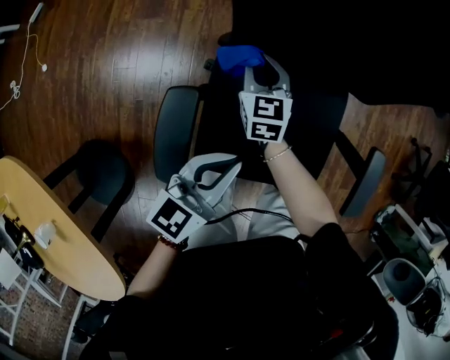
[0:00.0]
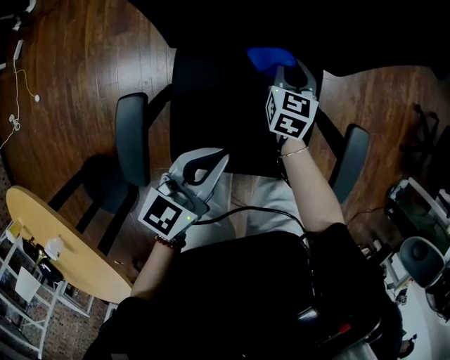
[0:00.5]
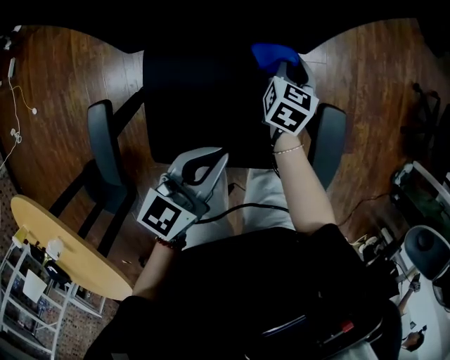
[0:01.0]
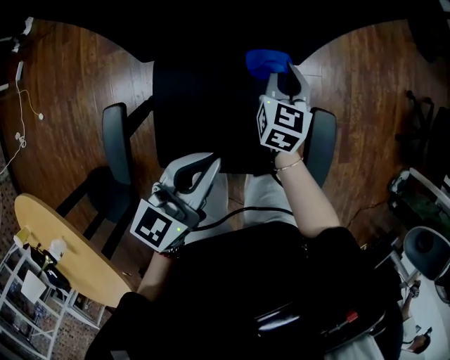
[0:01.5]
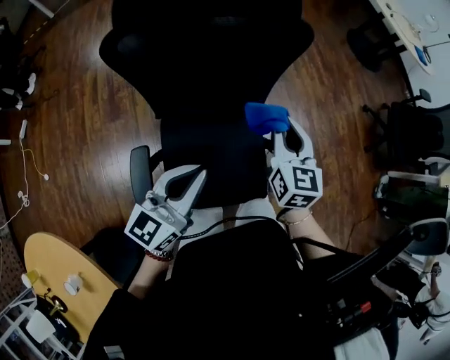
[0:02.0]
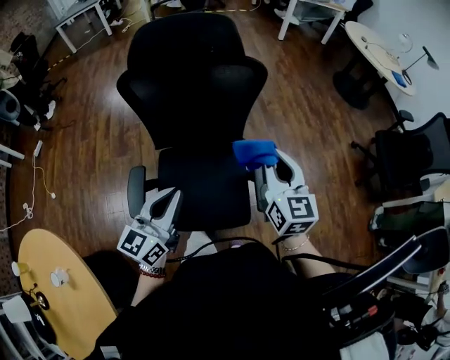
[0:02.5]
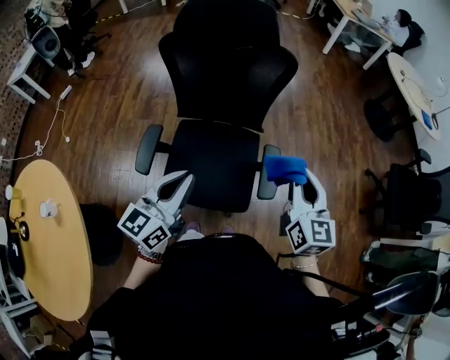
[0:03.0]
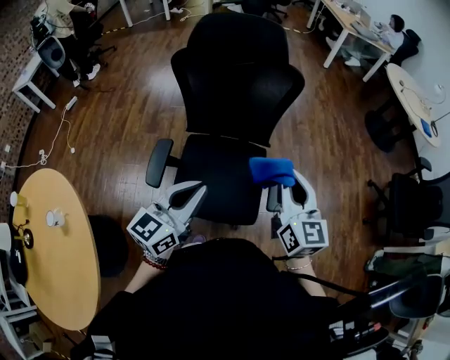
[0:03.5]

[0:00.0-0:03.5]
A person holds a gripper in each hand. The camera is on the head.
0:00.0 to 0:02.0: The left gripper moves upward and to the right, about 25 cm. The right gripper goes left and right, approximately 35 cm each way, reversing 2 times, and turns by roughly 30 degrees.
0:02.0 to 0:03.5: Both grippers move backward, upward and to the right, approximately 20 cm. The right gripper swivels roughly 30 degrees.

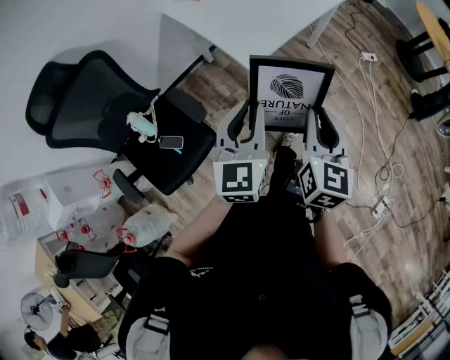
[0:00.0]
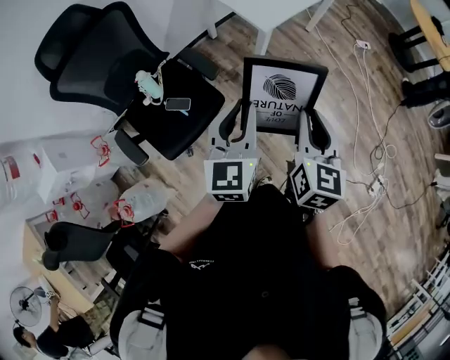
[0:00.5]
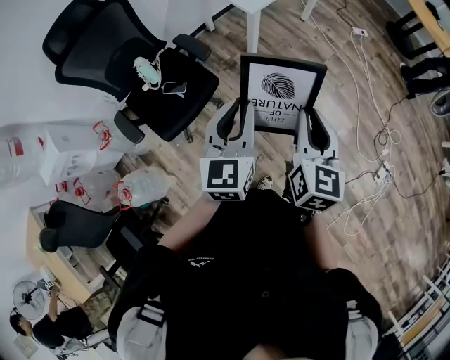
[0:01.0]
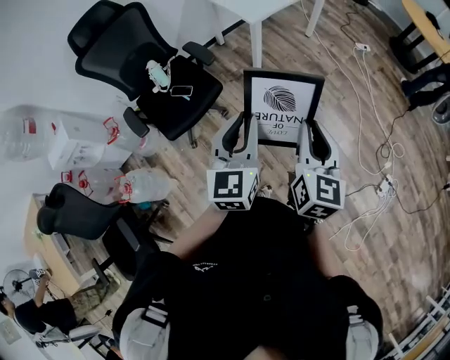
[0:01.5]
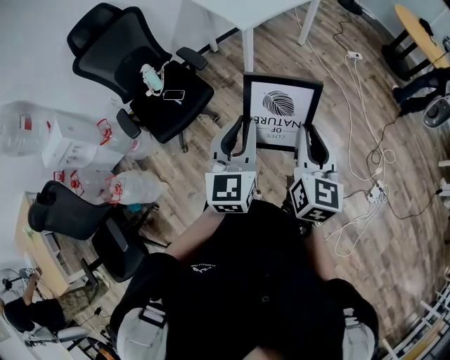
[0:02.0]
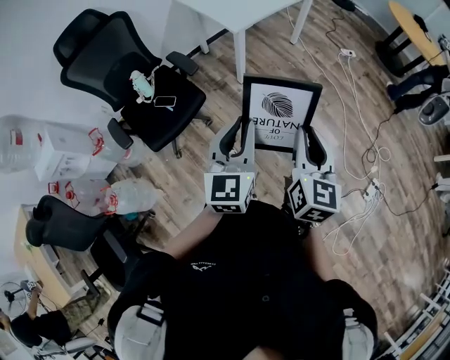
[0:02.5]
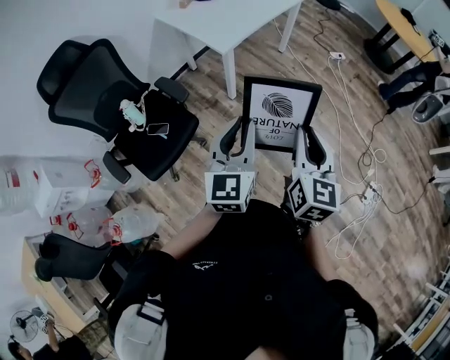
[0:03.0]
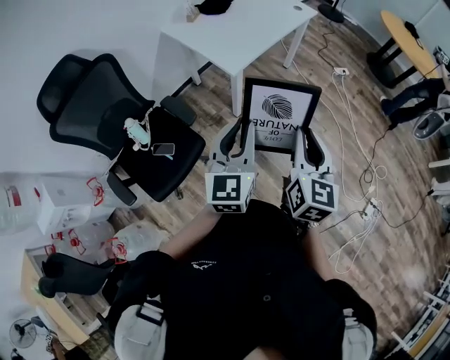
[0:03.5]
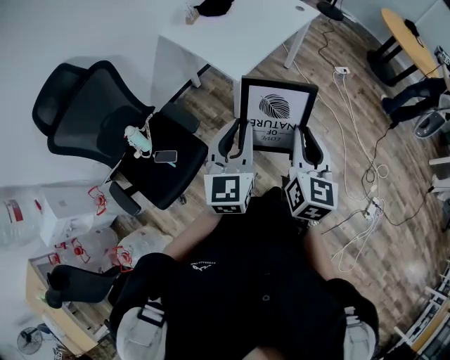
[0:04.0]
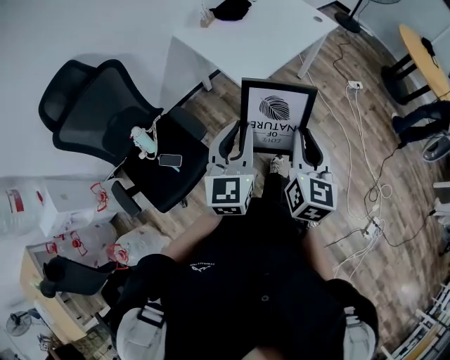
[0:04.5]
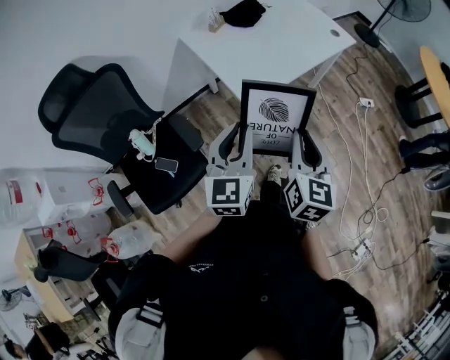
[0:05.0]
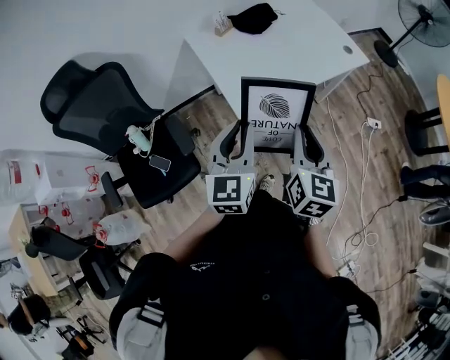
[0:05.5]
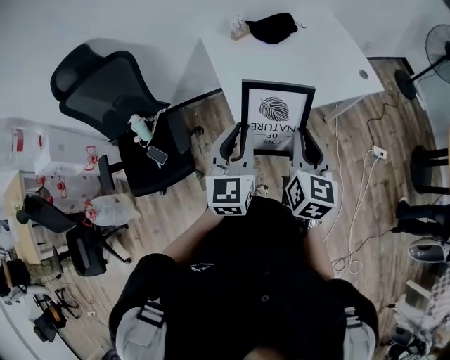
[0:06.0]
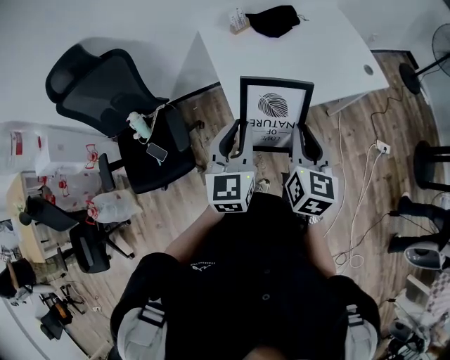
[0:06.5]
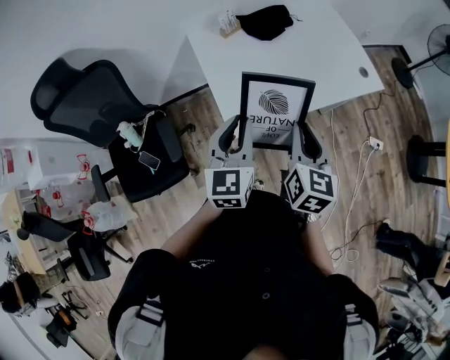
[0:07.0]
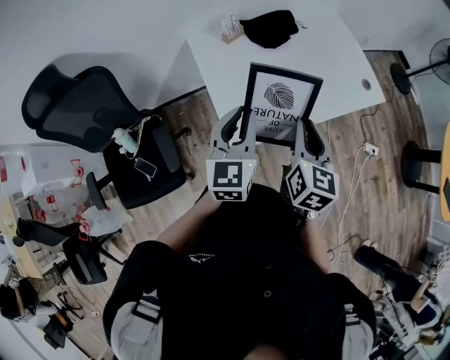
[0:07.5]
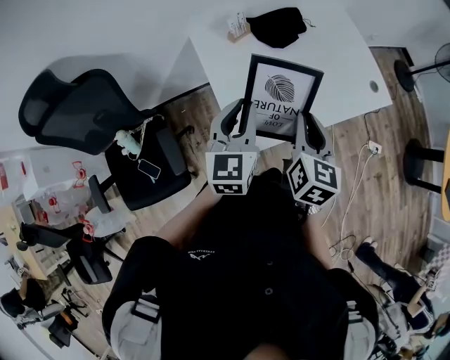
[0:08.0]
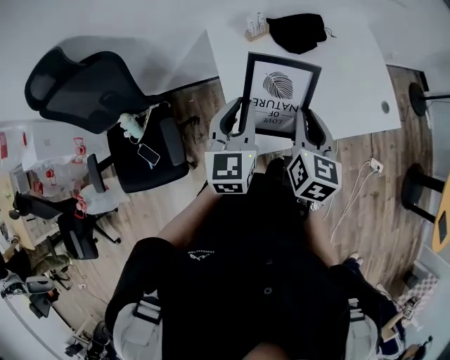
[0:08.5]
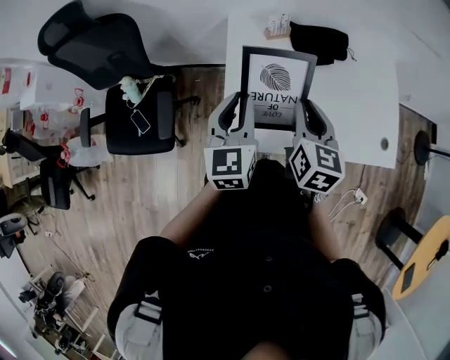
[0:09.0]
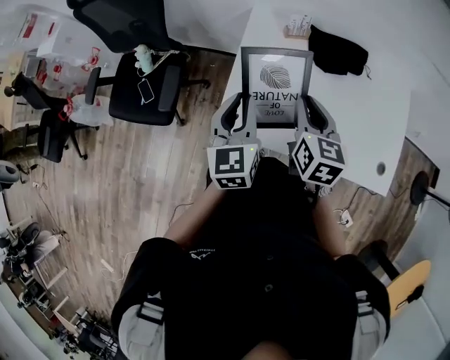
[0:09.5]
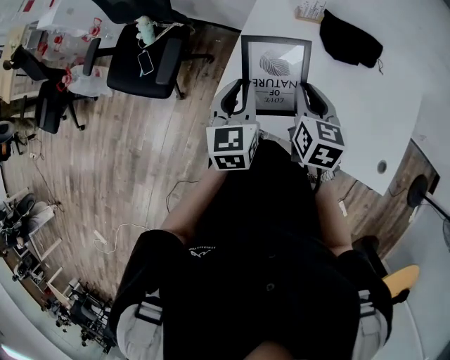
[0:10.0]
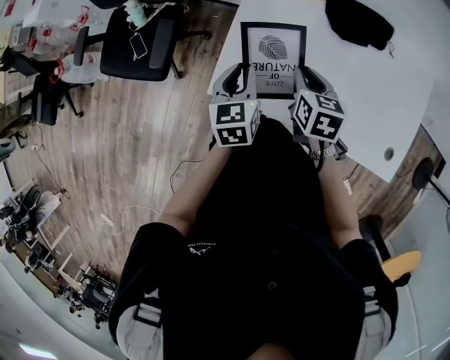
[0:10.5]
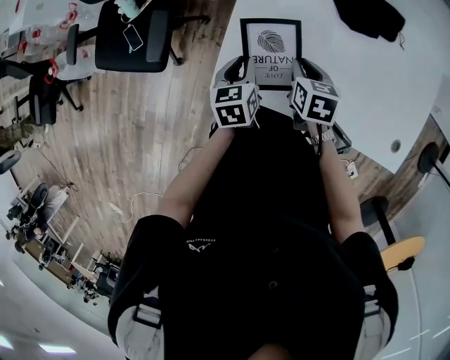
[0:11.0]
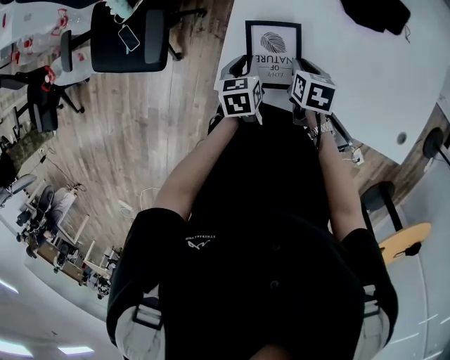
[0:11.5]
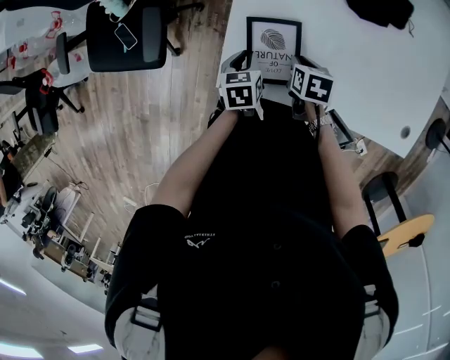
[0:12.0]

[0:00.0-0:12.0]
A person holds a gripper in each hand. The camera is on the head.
0:00.0 to 0:02.0: The two grippers travel together, backward, approximately 50 cm.
0:02.0 to 0:04.0: The two grippers go roughly 35 cm forward.
0:04.0 to 0:06.0: The right gripper moves some 35 cm, and changes its angle by some 30 degrees. The left gripper ends up some 30 cm from where it was, and rotates approximately 30 degrees.
0:06.0 to 0:08.0: The grippers both shift forward by about 25 cm.
0:08.0 to 0:10.0: The right gripper moves about 15 cm, and turns by approximately 50 degrees, while the left gripper heads downward, covering about 10 cm, and rotates about 50 degrees.
0:10.0 to 0:12.0: Both grippers move downward, approximately 25 cm. The left gripper angles its fingers downward, by about 30 degrees, while the right gripper tips its fingers downward by some 30 degrees.

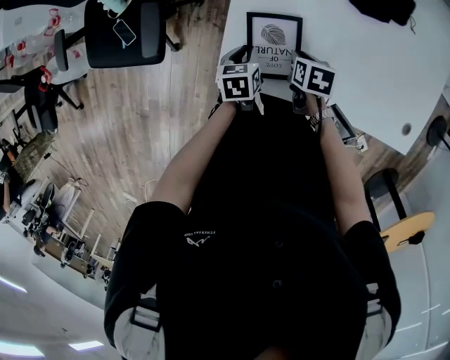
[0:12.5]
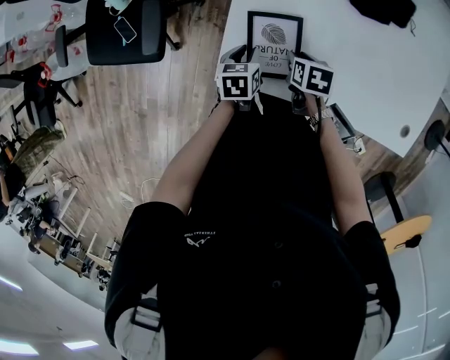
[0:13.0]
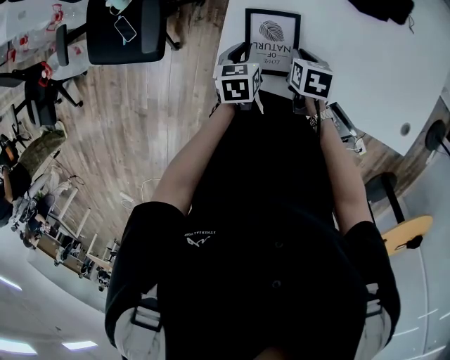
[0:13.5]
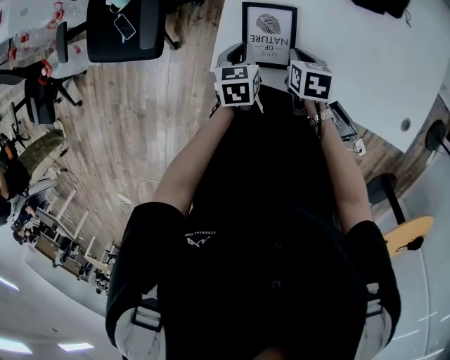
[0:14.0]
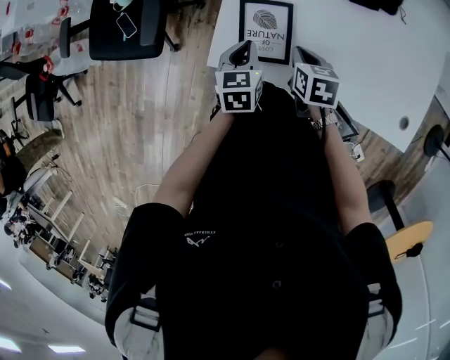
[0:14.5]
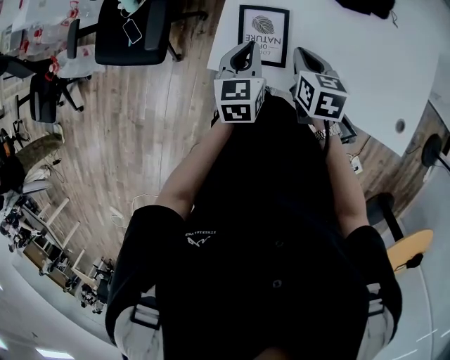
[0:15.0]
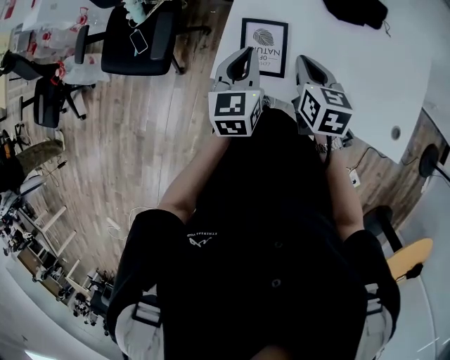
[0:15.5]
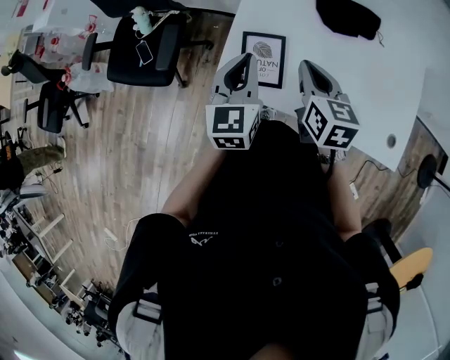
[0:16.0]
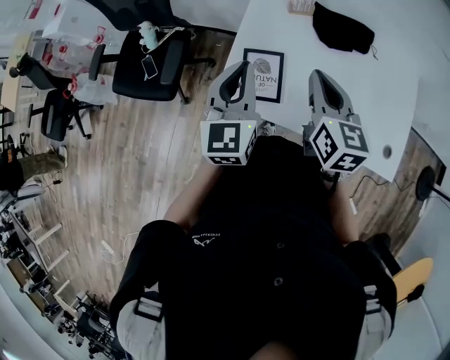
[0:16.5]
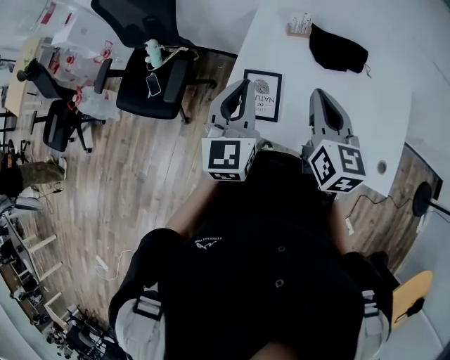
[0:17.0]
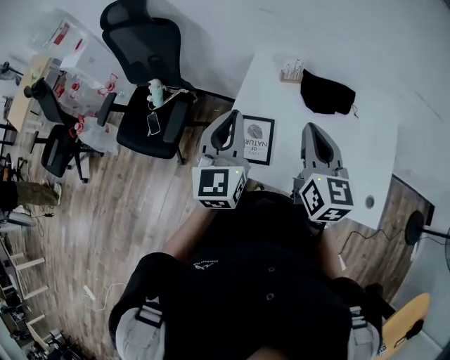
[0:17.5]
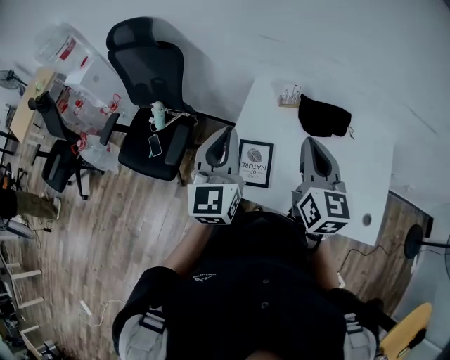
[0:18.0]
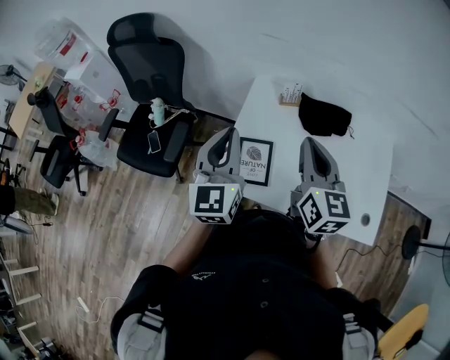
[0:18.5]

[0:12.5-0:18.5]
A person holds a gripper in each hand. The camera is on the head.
0:12.5 to 0:14.5: The grippers both shift upward by some 10 cm.
0:14.5 to 0:16.5: Both grippers move upward, about 25 cm. The right gripper tilts its fingers approximately 40 degrees upward. Meanwhile the left gripper tips its fingers upward by some 30 degrees.
0:16.5 to 0:18.5: Both grippers move upward, approximately 10 cm.

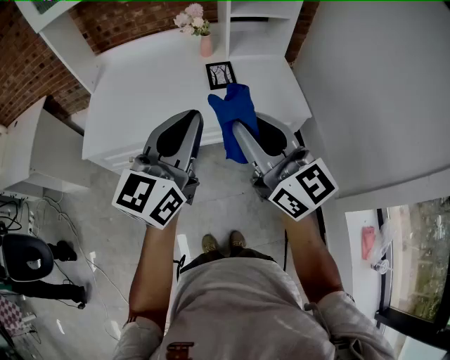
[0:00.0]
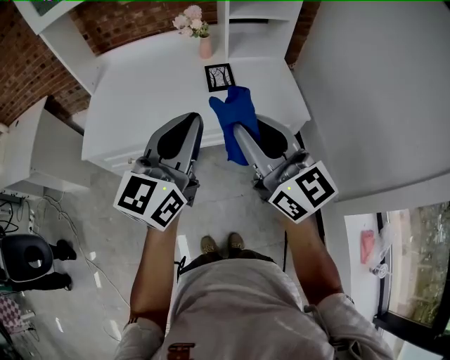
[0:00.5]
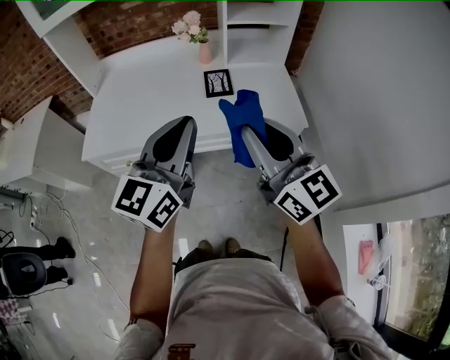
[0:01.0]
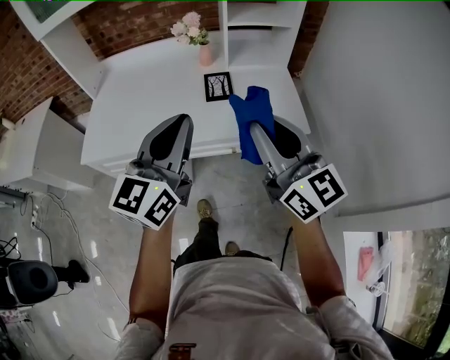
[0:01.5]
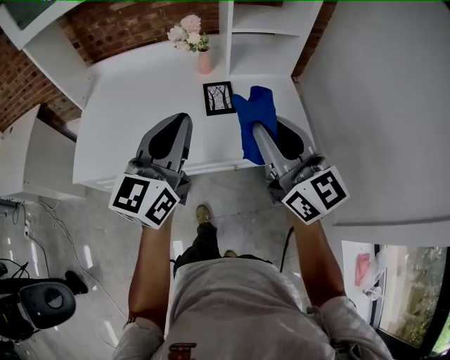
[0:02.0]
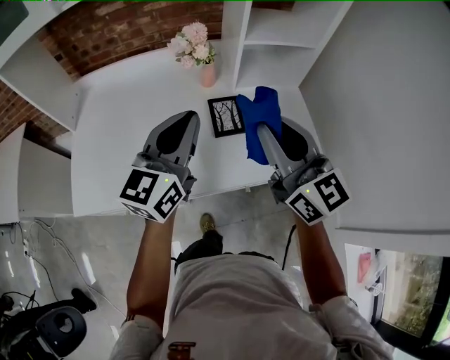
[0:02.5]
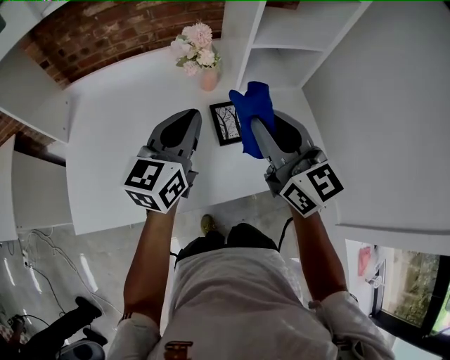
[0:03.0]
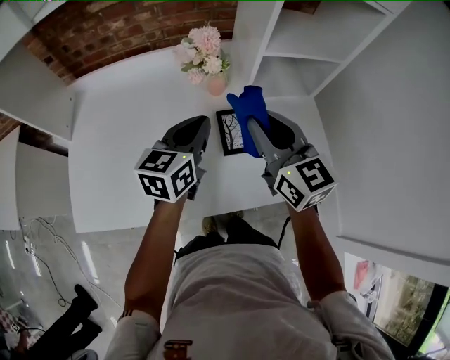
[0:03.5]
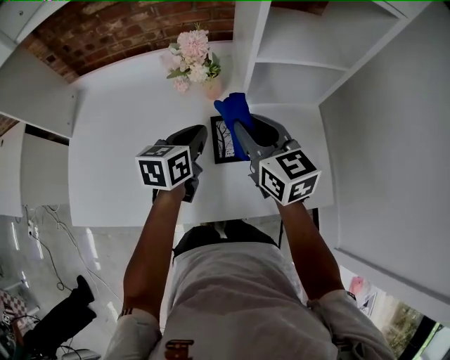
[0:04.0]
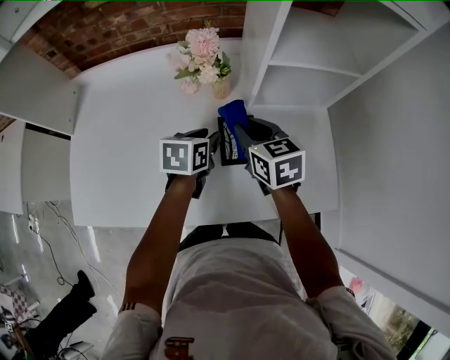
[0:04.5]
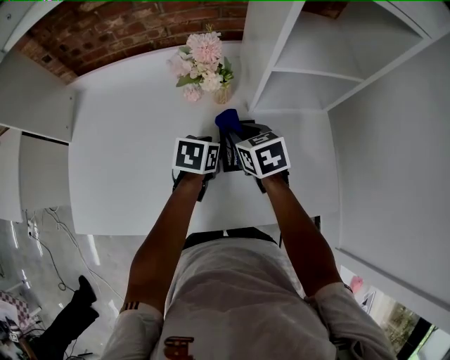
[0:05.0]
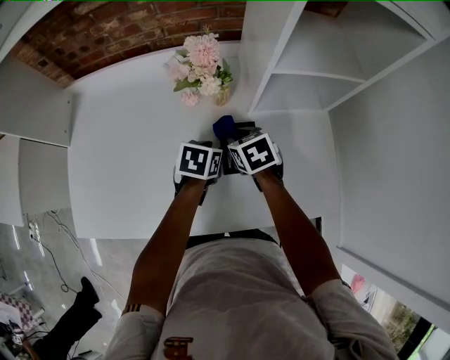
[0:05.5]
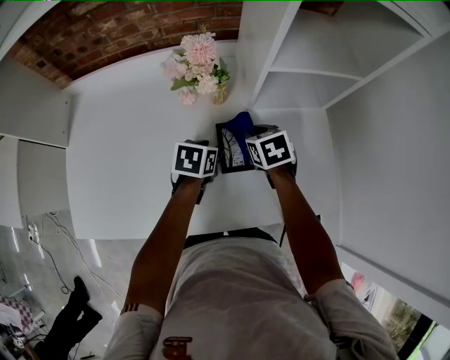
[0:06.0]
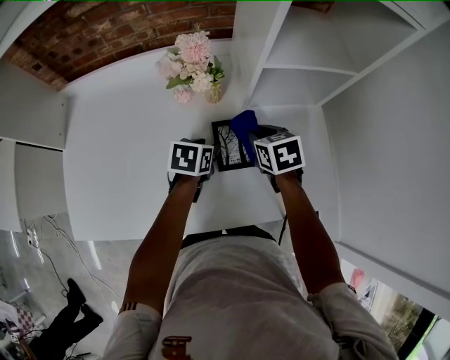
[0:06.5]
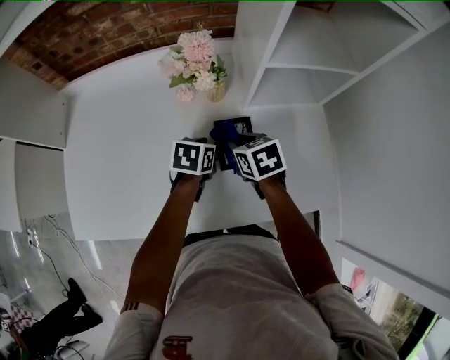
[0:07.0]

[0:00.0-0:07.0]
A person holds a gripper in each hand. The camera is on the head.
0:00.0 to 0:02.0: The right gripper moves forward and to the right, about 15 cm. Meanwhile the left gripper is displaced forward by about 15 cm.
0:02.0 to 0:03.5: The right gripper goes approximately 25 cm forward, while the left gripper shifts roughly 30 cm forward and downward, and changes its angle by about 30 degrees.
0:03.5 to 0:05.0: The left gripper travels downward by about 20 cm, points its fingers approximately 40 degrees further downward, and opens up. The right gripper shifts some 20 cm downward and forward, and tilts its fingers about 40 degrees downward.
